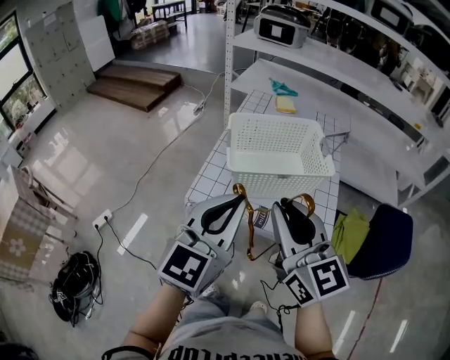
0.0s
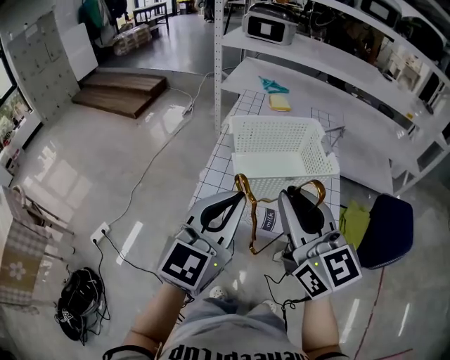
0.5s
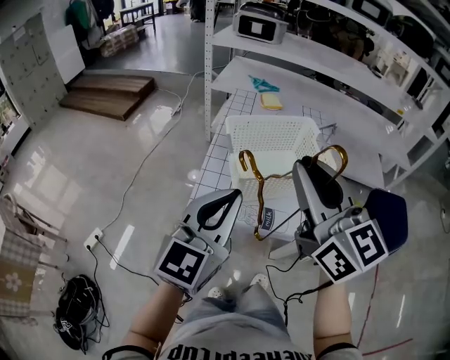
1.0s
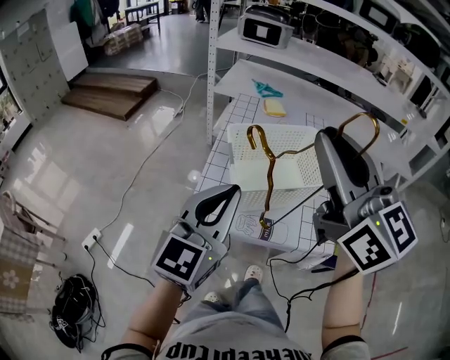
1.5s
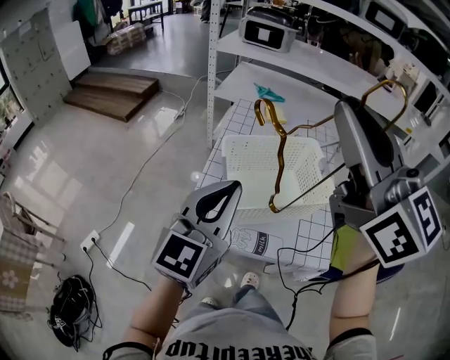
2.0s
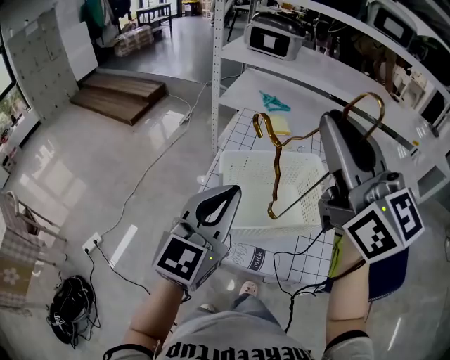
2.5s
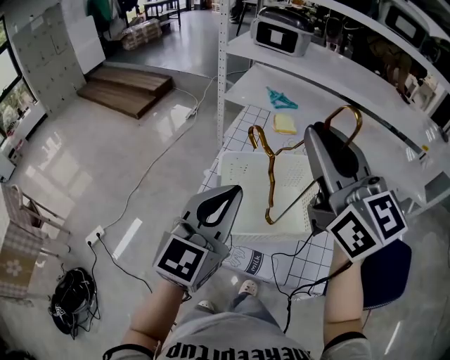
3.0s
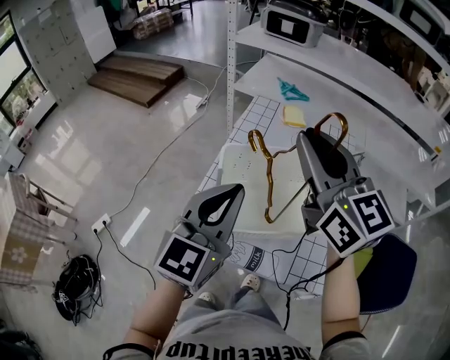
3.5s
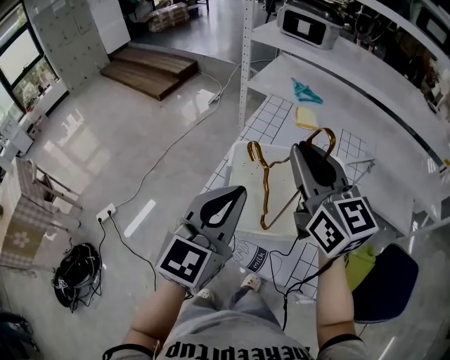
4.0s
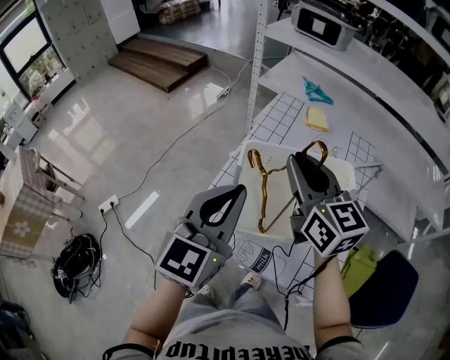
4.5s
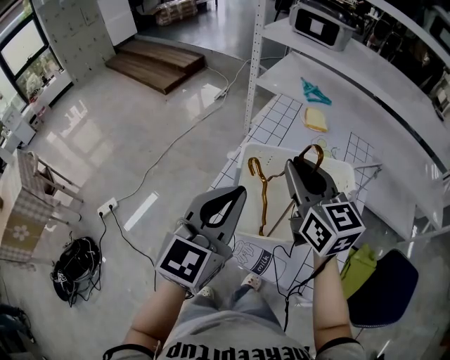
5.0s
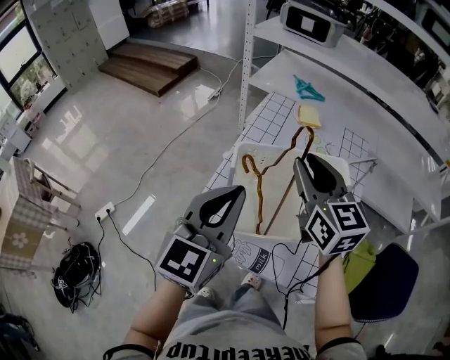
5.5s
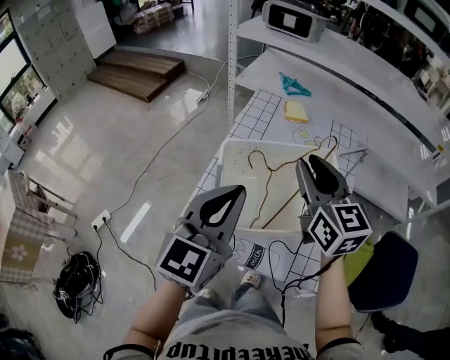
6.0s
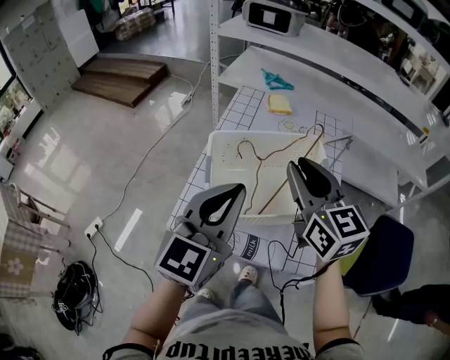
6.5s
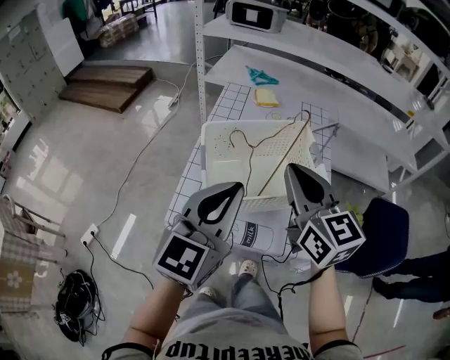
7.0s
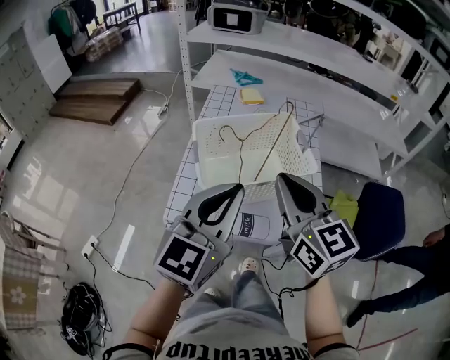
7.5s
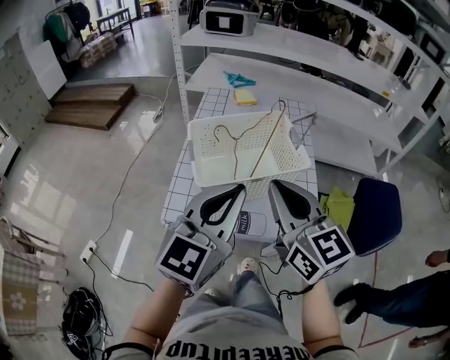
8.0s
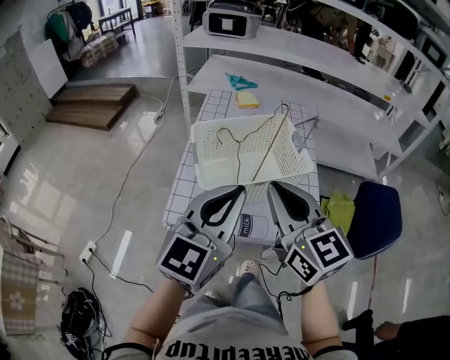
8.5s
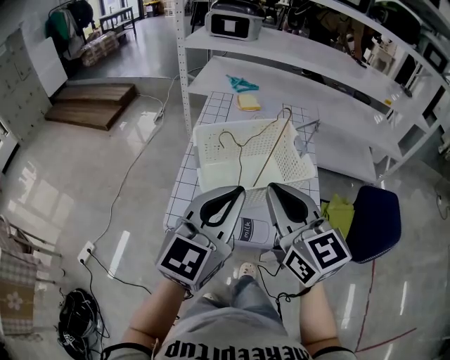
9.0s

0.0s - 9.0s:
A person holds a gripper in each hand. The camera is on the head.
0.0s - 2.0s: The left gripper moves forward, about 10 cm, while the right gripper is displaced upward and forward by some 25 cm.
2.0s - 4.5s: The left gripper moves forward, approximately 10 cm; the right gripper heads downward and forward, covering roughly 30 cm, and rotates some 30 degrees.
4.5s - 7.0s: The left gripper goes approximately 10 cm backward and to the right. Meanwhile the right gripper heads backward and to the right, covering some 15 cm.
7.0s - 9.0s: The right gripper heads backward, covering approximately 10 cm. The left gripper moves some 5 cm.

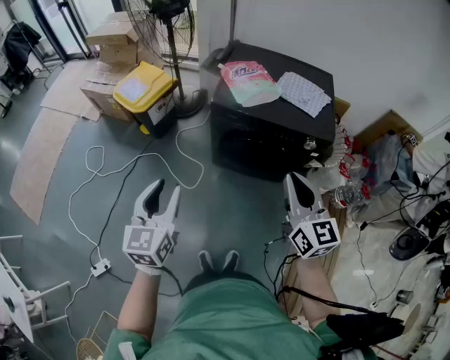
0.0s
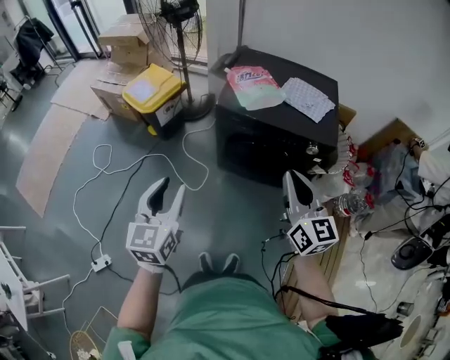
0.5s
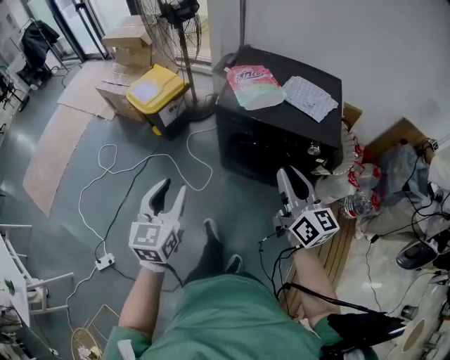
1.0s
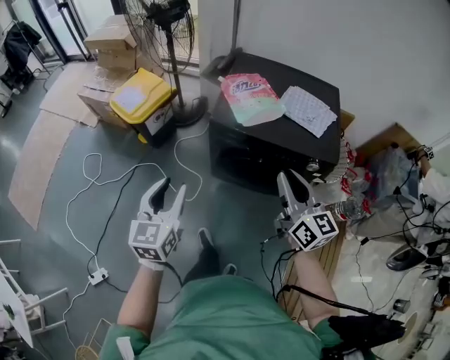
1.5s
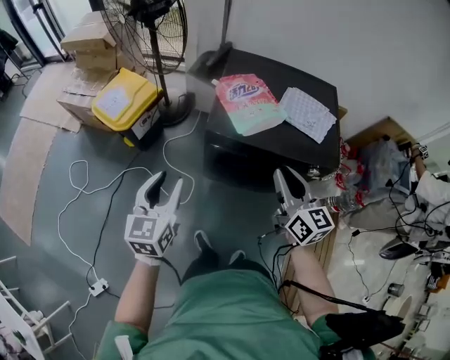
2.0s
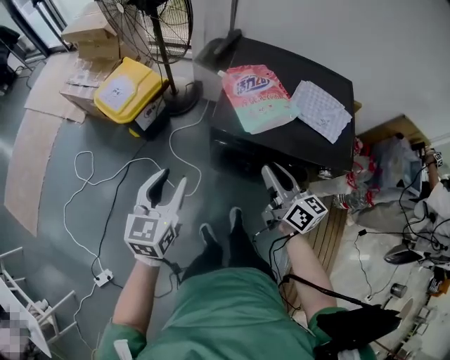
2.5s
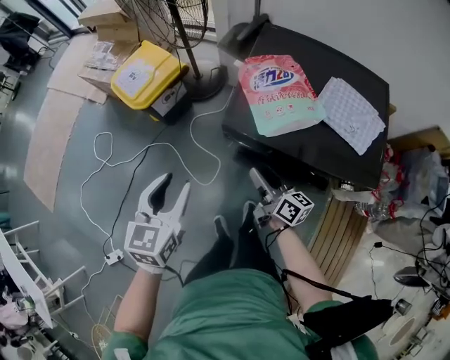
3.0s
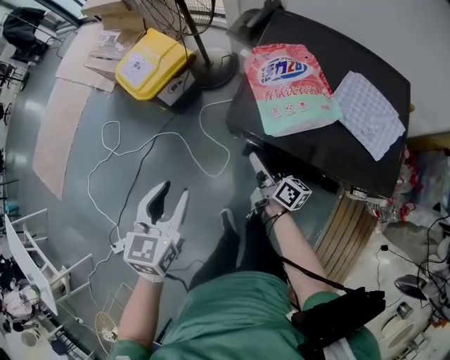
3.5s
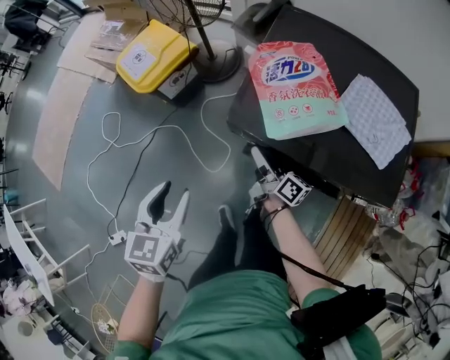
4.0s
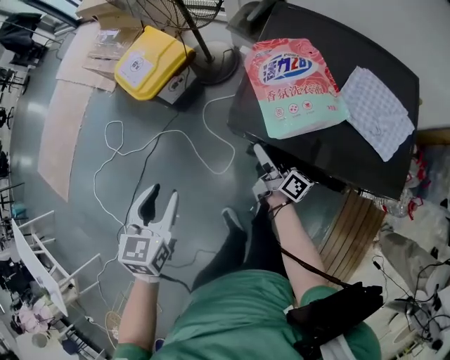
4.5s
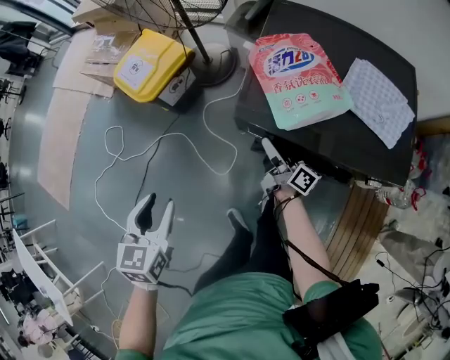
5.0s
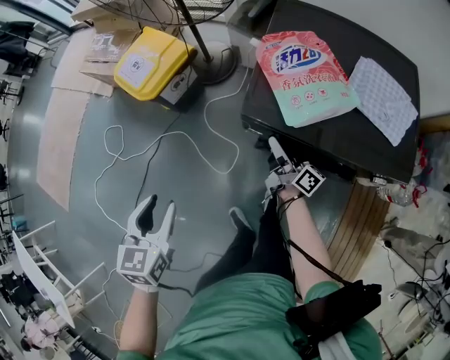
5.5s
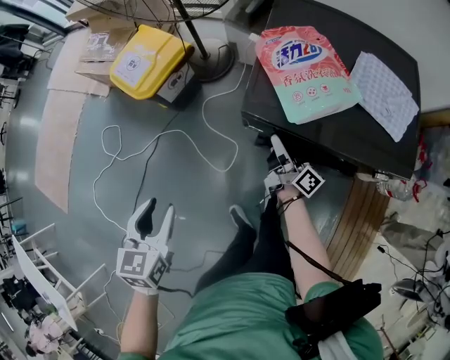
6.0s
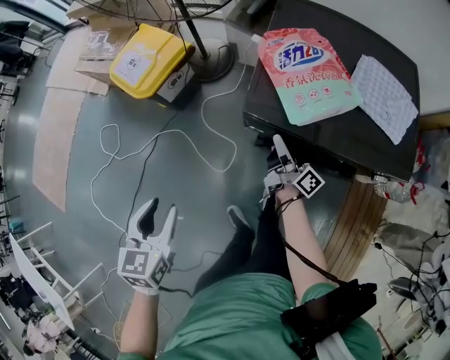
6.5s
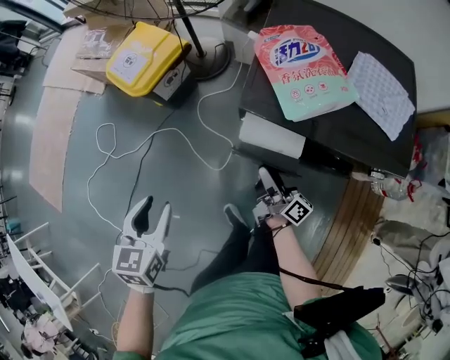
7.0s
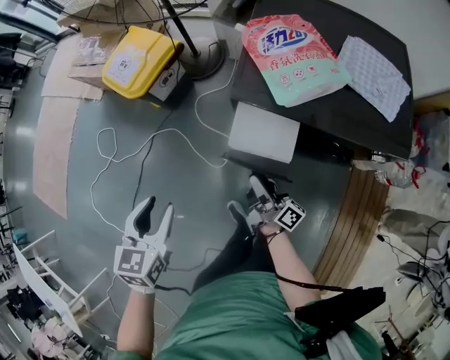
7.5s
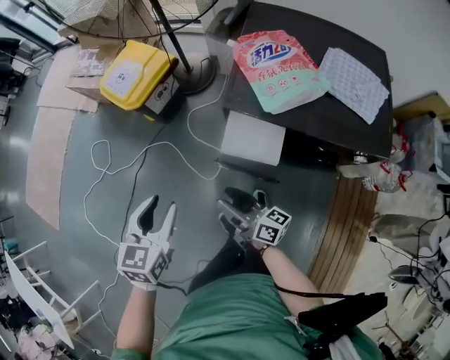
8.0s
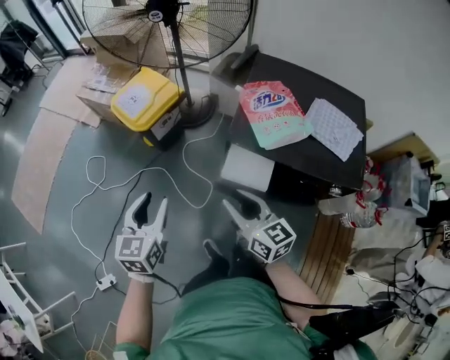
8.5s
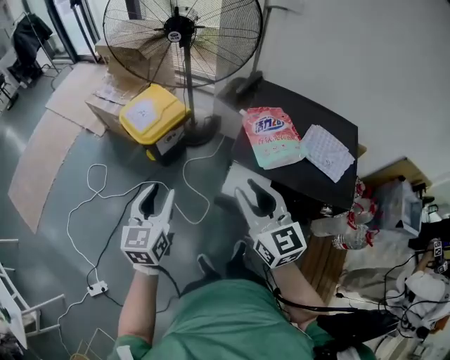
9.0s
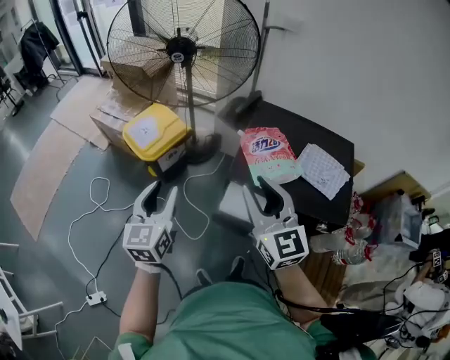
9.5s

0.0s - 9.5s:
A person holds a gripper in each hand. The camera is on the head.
0.0s - 2.0s: Both grippers travel together forward, about 20 cm.
2.0s - 4.0s: The right gripper is displaced downward and forward by some 35 cm, rotates around the line of its fingers by some 50 degrees, clockwise from behind, and opens its fingers. Meanwhile the left gripper moves downward and forward, about 10 cm, and rotates approximately 20 degrees.
4.0s - 5.5s: The left gripper moves to the left, roughly 10 cm.
5.5s - 7.5s: The right gripper goes roughly 15 cm backward.
7.5s - 9.5s: The right gripper goes approximately 40 cm upward, rolls counterclockwise, seen from behind, by about 80 degrees, and closes. Meanwhile the left gripper shifts approximately 20 cm upward, and rotates some 30 degrees.

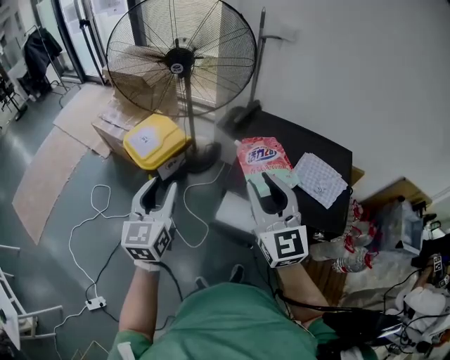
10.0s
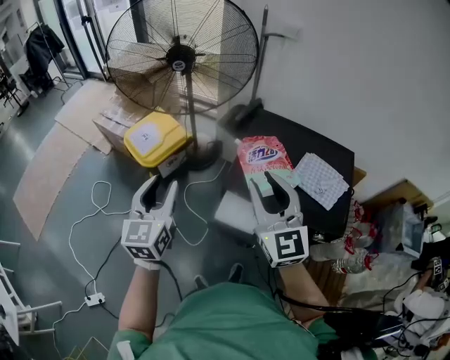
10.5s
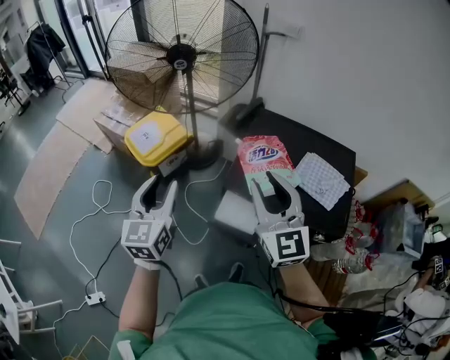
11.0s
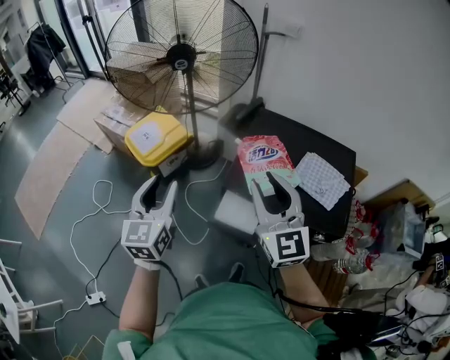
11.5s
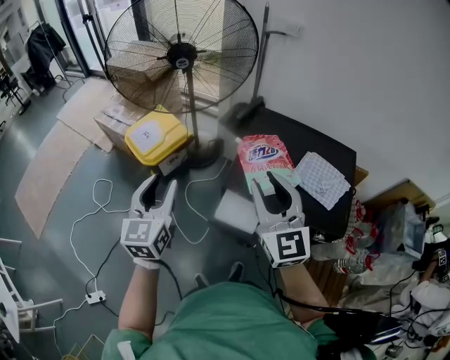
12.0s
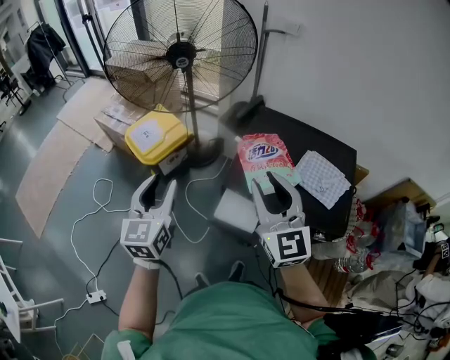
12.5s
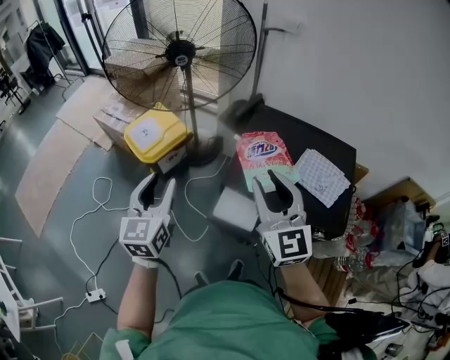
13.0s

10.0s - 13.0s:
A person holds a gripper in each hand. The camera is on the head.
10.0s - 11.5s: The grippers stay close to where they were, moving slightly.
11.5s - 13.0s: The two grippers keep their place.

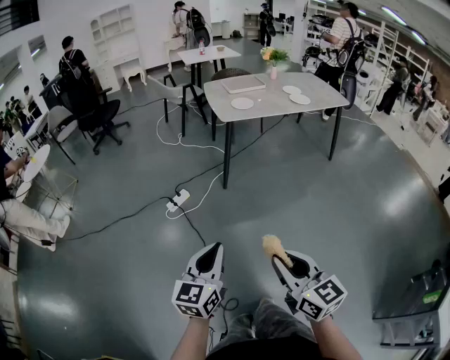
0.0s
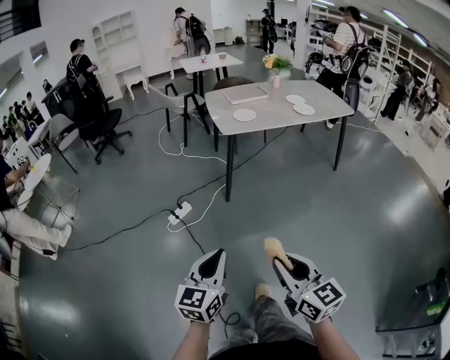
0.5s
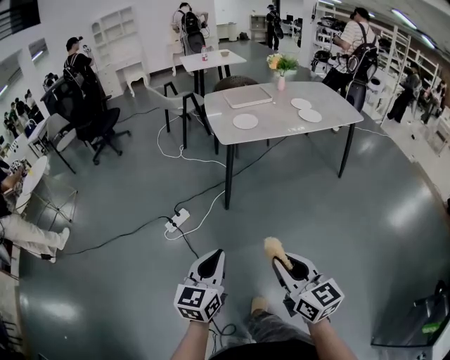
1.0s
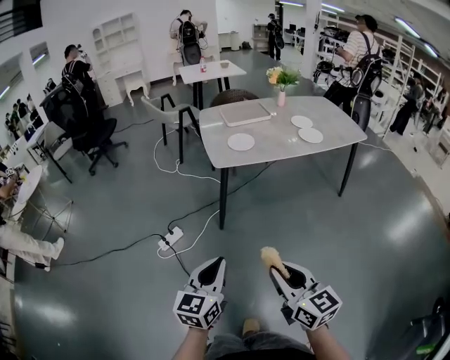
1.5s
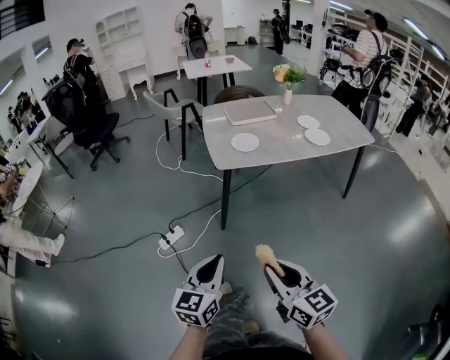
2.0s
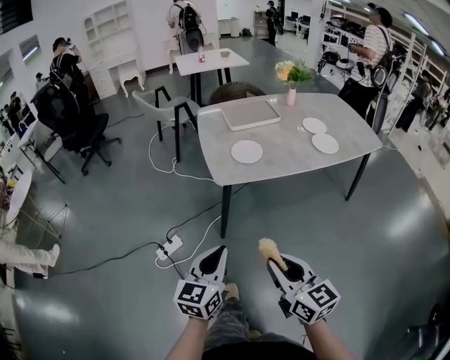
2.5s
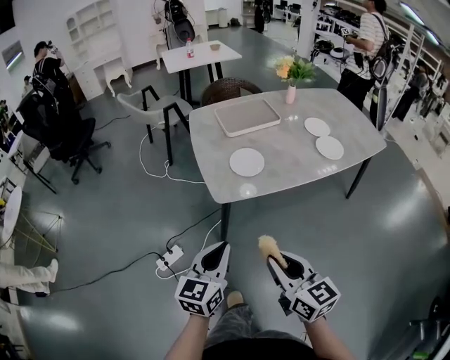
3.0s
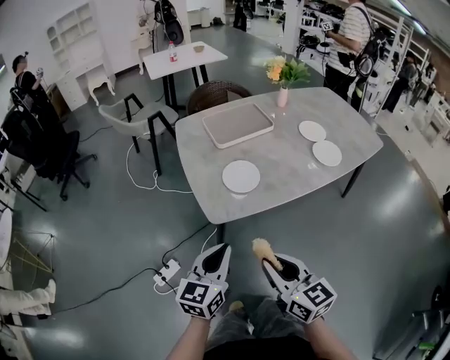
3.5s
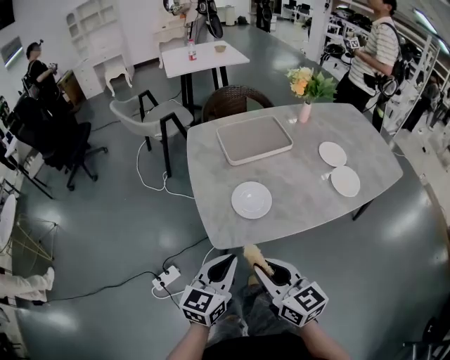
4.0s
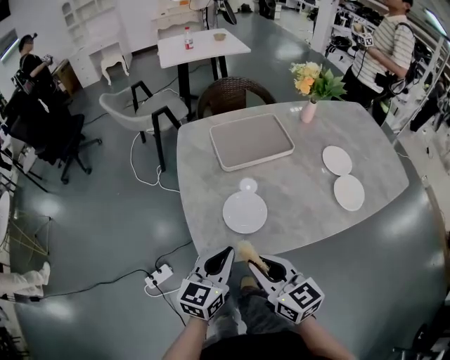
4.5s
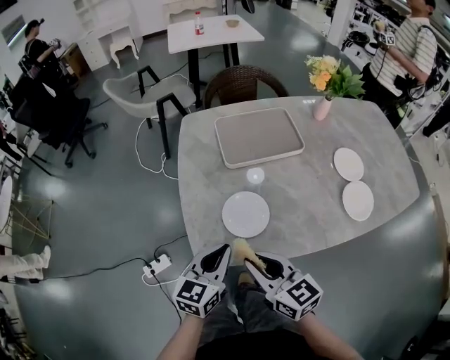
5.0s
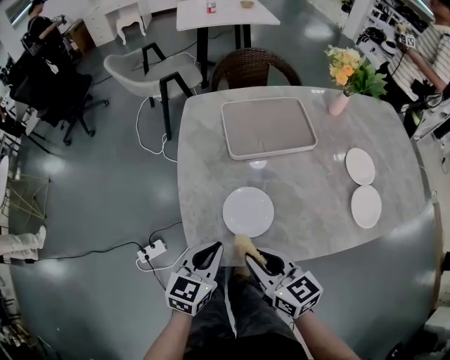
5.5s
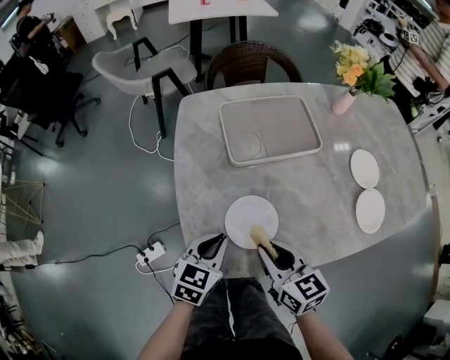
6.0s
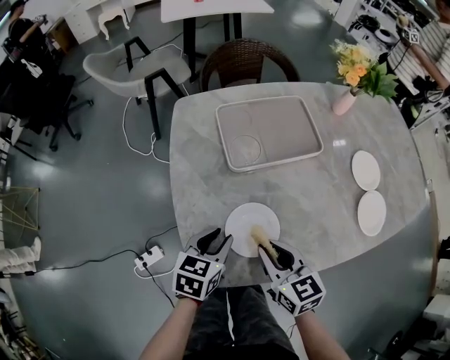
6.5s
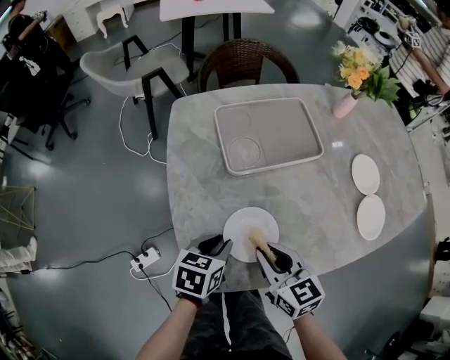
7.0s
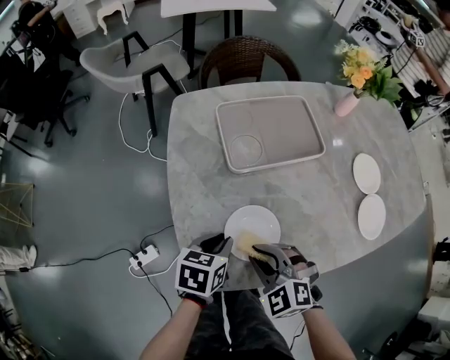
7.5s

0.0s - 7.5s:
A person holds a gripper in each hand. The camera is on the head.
0.0s - 2.0s: Both grippers travel together forward, about 30 cm.
2.0s - 4.0s: Both grippers are carried forward, approximately 40 cm.
4.0s - 5.5s: The grippers both shift forward and downward by about 15 cm.
5.5s - 7.5s: Both grippers travel together forward and downward, some 10 cm. The left gripper changes its angle by some 30 degrees; the right gripper rotates around the line of its fingers by roughly 50 degrees, counterclockwise from behind.
